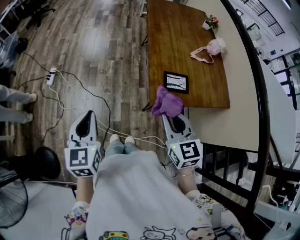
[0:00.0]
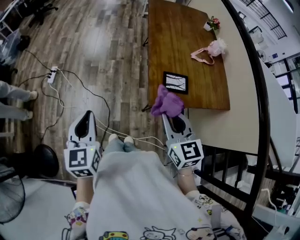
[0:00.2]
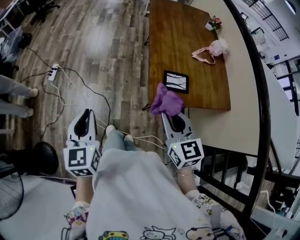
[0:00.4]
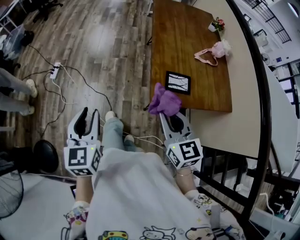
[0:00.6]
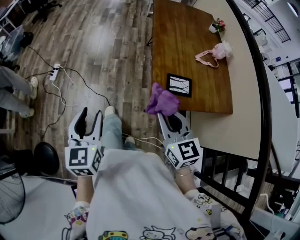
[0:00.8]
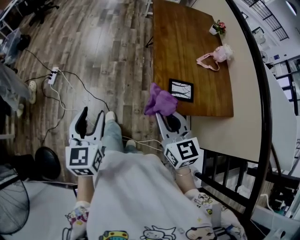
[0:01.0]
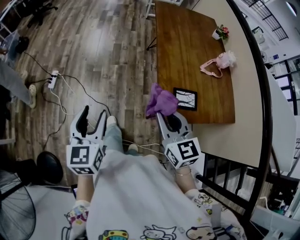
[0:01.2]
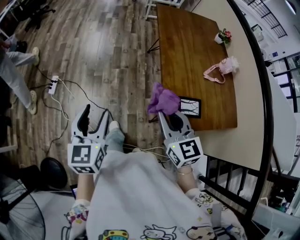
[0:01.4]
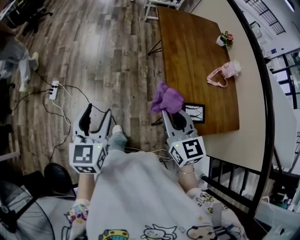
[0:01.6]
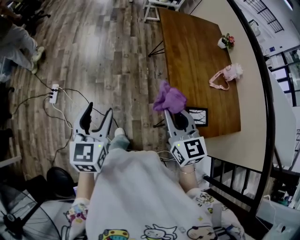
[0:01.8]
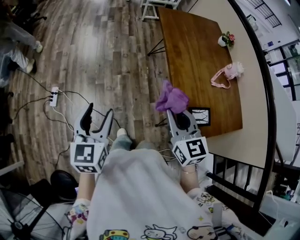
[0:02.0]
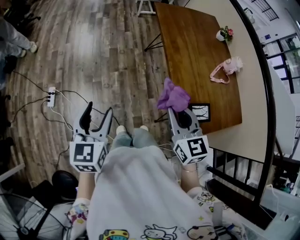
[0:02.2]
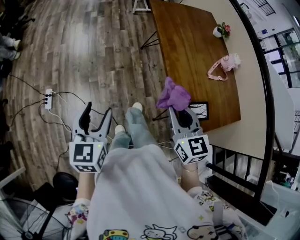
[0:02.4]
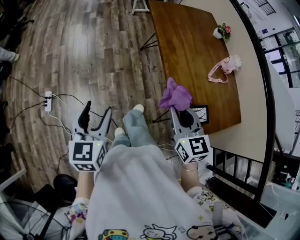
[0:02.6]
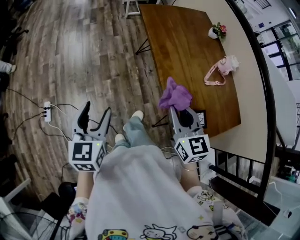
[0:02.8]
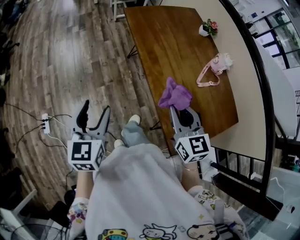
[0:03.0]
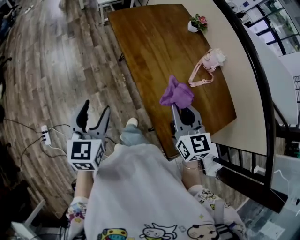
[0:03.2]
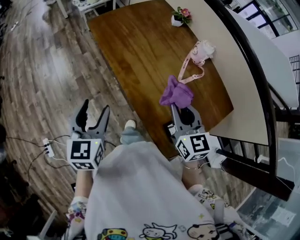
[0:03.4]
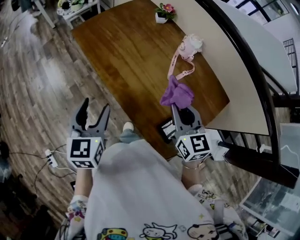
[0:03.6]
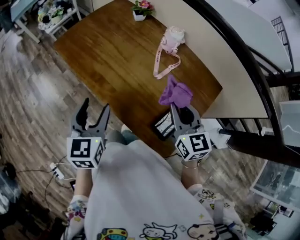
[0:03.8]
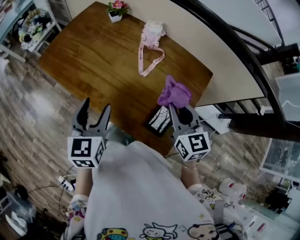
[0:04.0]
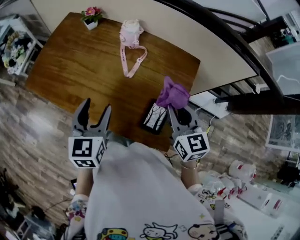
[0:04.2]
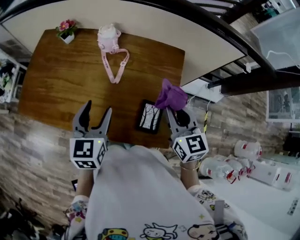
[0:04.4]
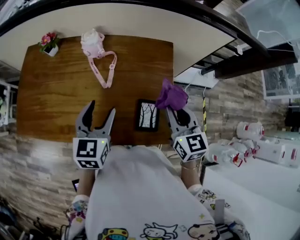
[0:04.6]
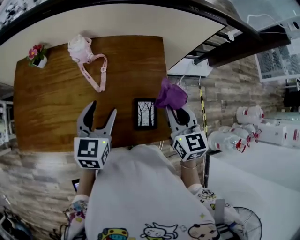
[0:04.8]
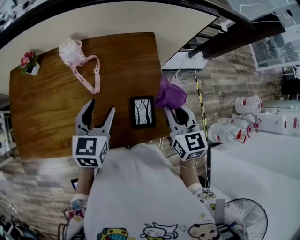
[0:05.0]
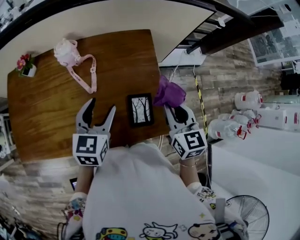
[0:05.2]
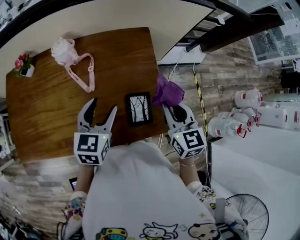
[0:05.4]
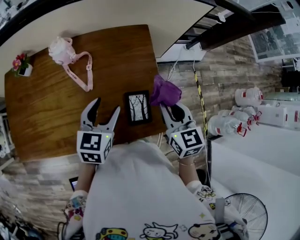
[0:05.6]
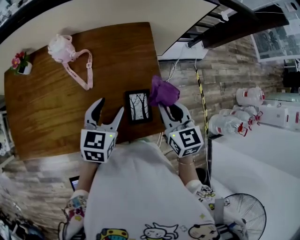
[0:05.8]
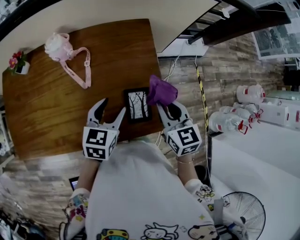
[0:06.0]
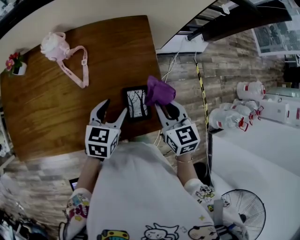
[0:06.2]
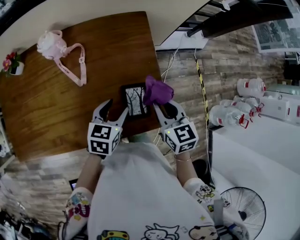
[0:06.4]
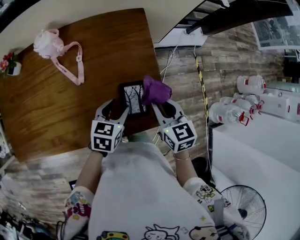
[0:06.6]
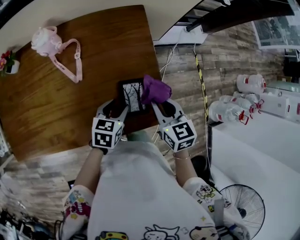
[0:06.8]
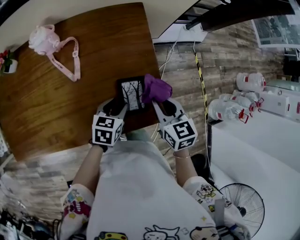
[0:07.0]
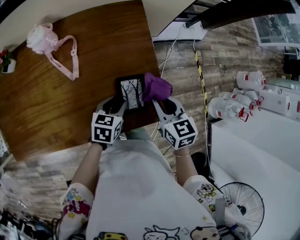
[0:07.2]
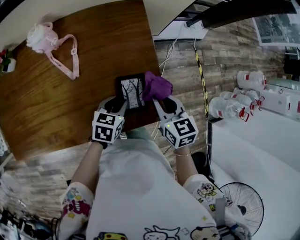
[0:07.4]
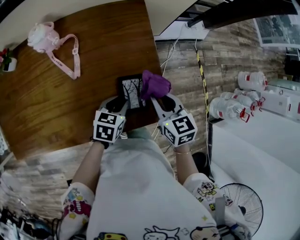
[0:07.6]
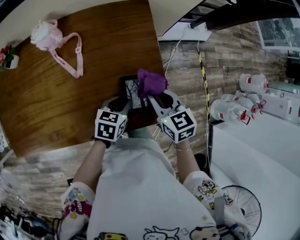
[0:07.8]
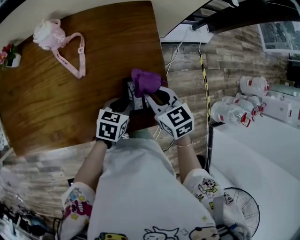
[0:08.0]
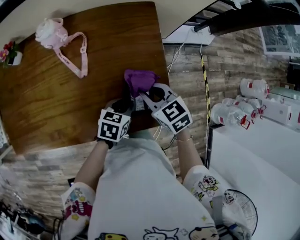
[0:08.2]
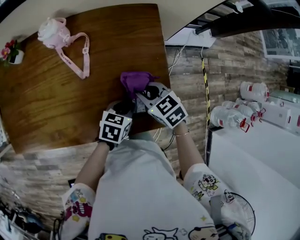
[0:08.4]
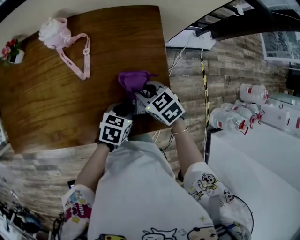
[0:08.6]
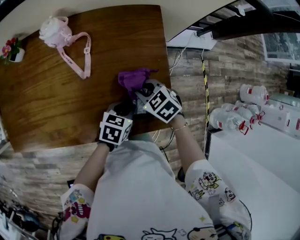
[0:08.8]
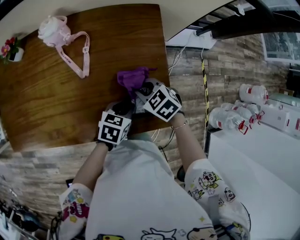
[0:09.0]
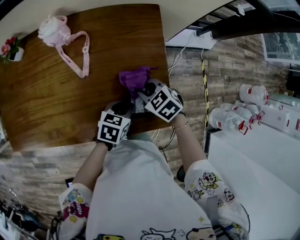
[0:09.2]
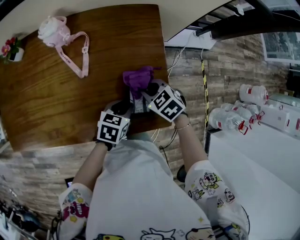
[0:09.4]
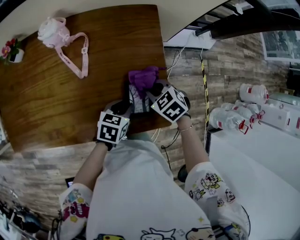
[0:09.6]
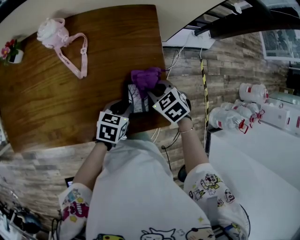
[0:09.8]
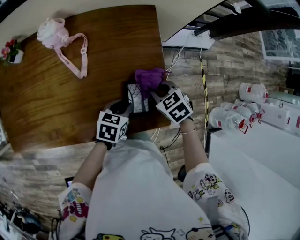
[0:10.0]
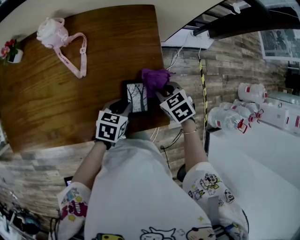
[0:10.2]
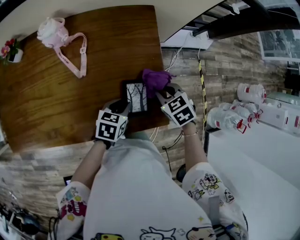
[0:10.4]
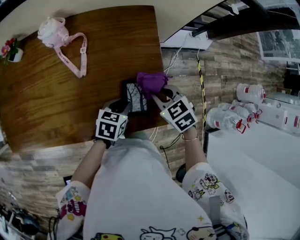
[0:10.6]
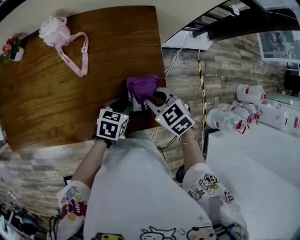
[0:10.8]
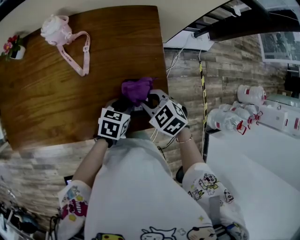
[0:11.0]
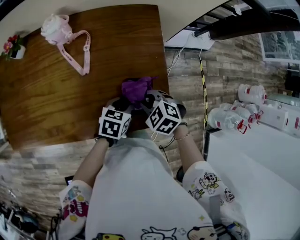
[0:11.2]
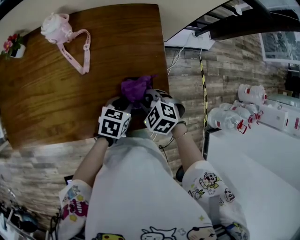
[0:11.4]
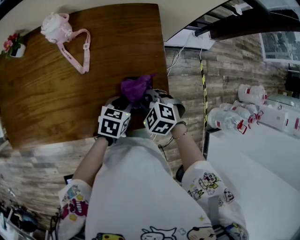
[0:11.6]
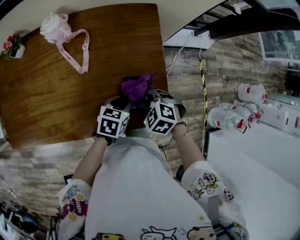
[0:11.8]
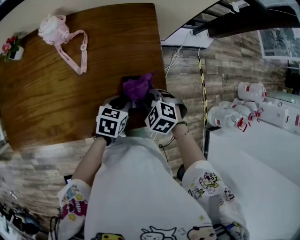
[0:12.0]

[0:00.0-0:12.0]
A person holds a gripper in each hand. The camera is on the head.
0:00.0 to 0:01.6: Both grippers travel together forward, roughly 20 cm. The left gripper opens its fingers.
0:01.6 to 0:03.0: The right gripper is displaced forward and to the right by some 15 cm. Meanwhile the left gripper is displaced forward by approximately 20 cm.
0:03.0 to 0:04.4: The left gripper shifts by roughly 40 cm, and changes its angle by roughly 60 degrees; the right gripper shifts by about 25 cm, and swivels some 60 degrees.
0:04.4 to 0:06.0: The right gripper moves downward, roughly 5 cm, and rotates approximately 20 degrees. The left gripper ends up about 15 cm from where it was, and changes its angle by about 40 degrees.
0:06.0 to 0:07.6: The right gripper goes about 5 cm downward. The left gripper goes roughly 15 cm downward and to the right, and closes up.
0:07.6 to 0:09.0: The right gripper heads to the left and downward, covering about 10 cm, and changes its angle by some 40 degrees.
0:09.0 to 0:10.4: The right gripper shifts some 10 cm to the right.
0:10.4 to 0:12.0: The right gripper heads to the left and backward, covering approximately 10 cm, and turns by some 30 degrees.

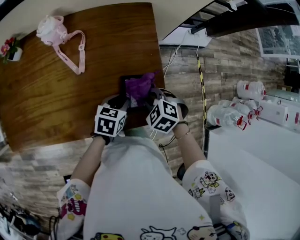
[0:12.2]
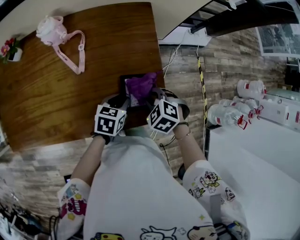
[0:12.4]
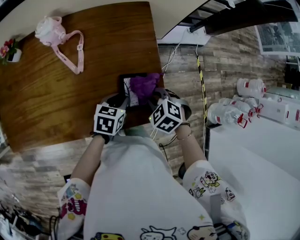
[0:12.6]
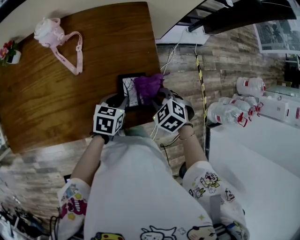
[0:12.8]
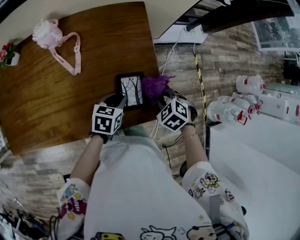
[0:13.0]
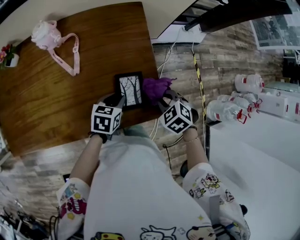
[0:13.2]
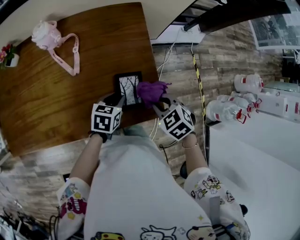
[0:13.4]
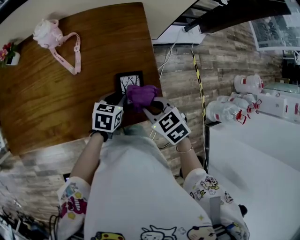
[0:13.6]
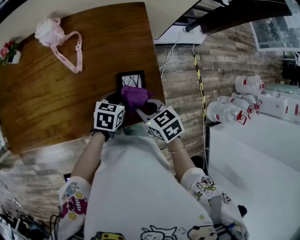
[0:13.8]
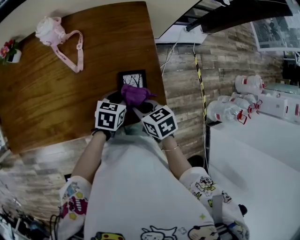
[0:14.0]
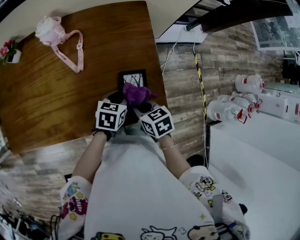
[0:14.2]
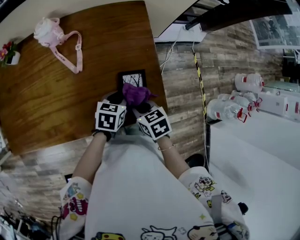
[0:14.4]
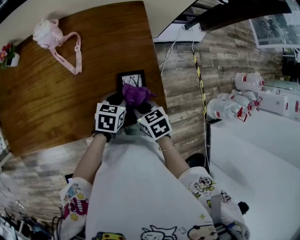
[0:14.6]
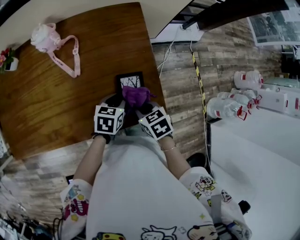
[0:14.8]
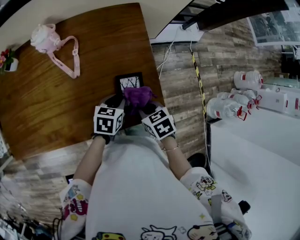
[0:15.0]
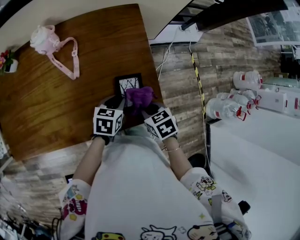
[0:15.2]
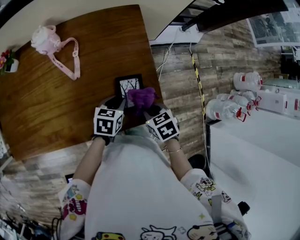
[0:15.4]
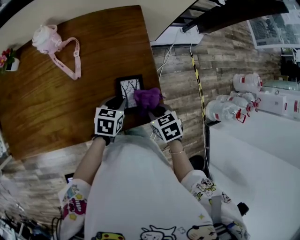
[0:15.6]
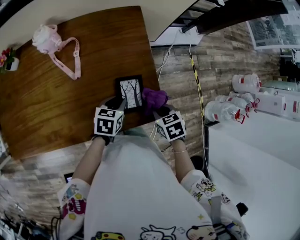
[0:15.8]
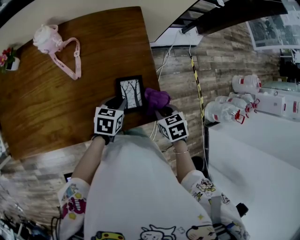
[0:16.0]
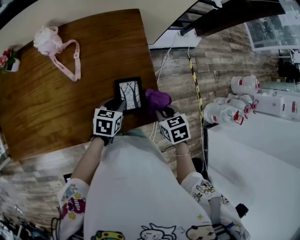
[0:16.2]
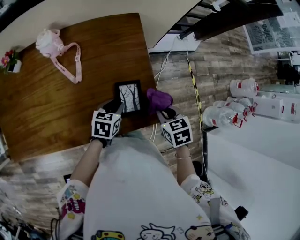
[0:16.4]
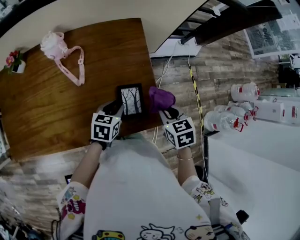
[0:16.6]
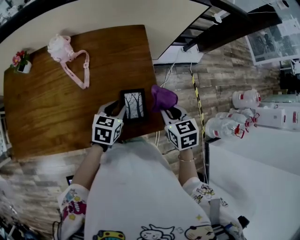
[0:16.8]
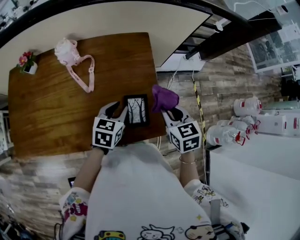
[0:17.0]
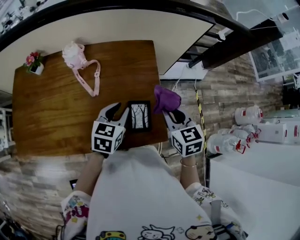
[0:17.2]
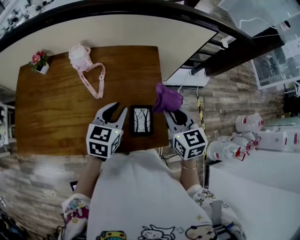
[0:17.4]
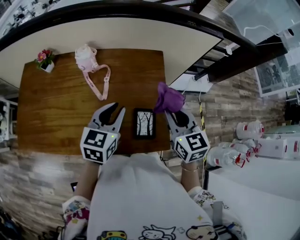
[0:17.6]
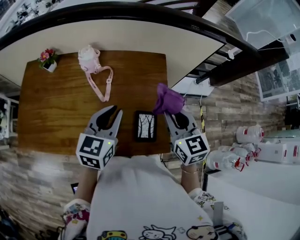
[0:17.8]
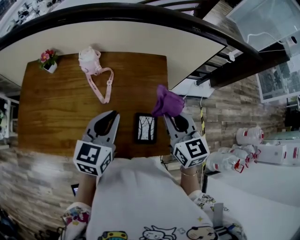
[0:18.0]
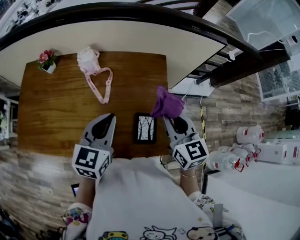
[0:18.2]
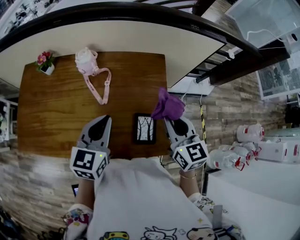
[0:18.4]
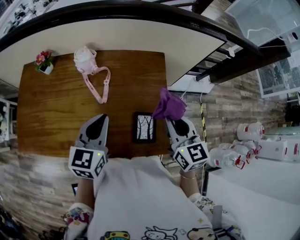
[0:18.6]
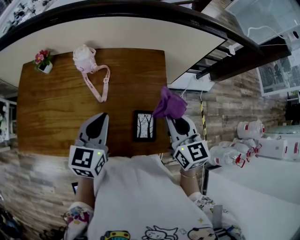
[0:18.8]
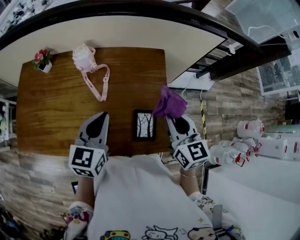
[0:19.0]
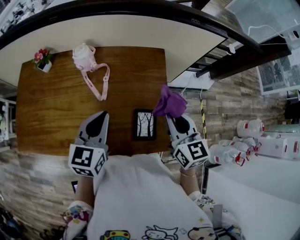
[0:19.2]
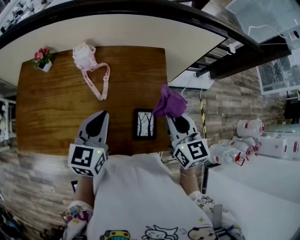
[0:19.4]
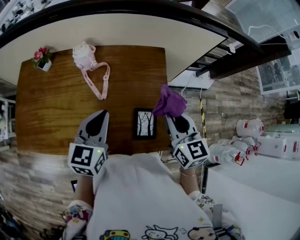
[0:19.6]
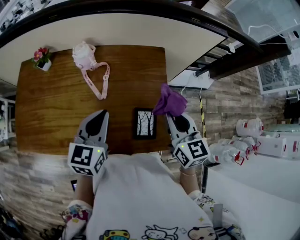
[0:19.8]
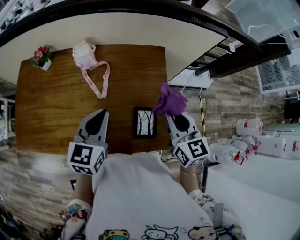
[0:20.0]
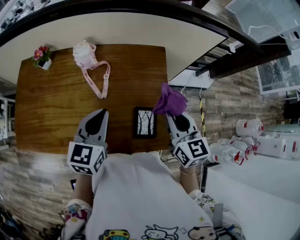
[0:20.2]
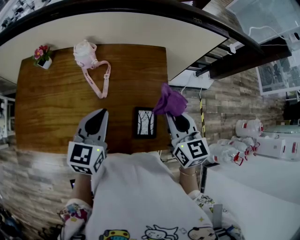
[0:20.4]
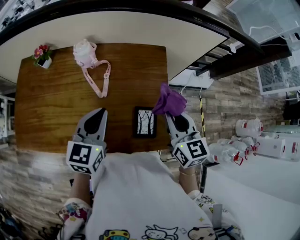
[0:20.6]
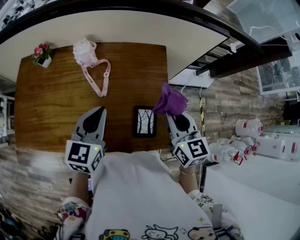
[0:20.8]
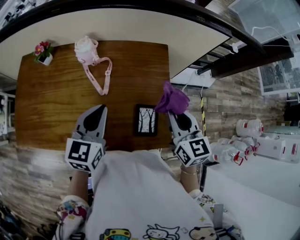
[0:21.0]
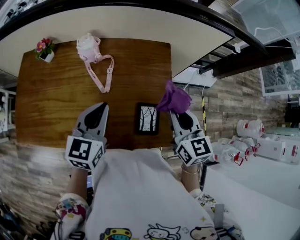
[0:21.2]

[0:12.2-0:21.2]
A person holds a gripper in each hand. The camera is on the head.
0:12.2 to 0:13.8: The right gripper heads upward, covering approximately 5 cm, travels to the right and back again, roughly 10 cm each way, and changes its angle by approximately 40 degrees.
0:13.8 to 0:15.2: The right gripper changes place by roughly 5 cm.
0:15.2 to 0:16.6: The right gripper moves upward and to the right, roughly 10 cm.
0:16.6 to 0:18.2: The left gripper goes some 25 cm upward and to the left, rotates roughly 30 degrees, and closes its fingers, while the right gripper moves upward, to the left and forward, approximately 20 cm, and tips its fingers upward by approximately 30 degrees.
0:18.2 to 0:19.8: The grippers stay close to where they were, moving slightly.
0:19.8 to 0:21.2: Both grippers stay put.

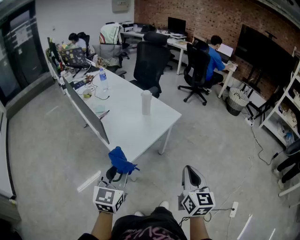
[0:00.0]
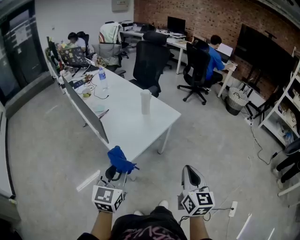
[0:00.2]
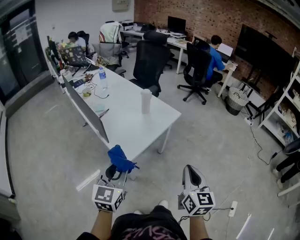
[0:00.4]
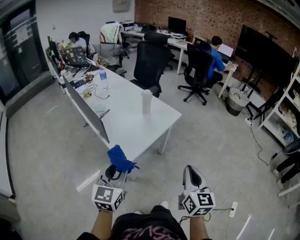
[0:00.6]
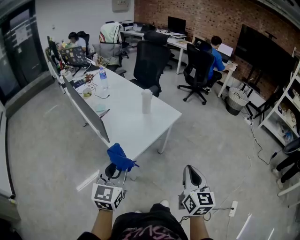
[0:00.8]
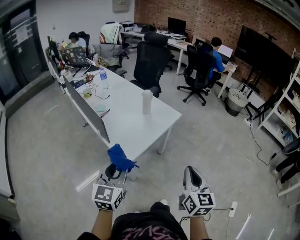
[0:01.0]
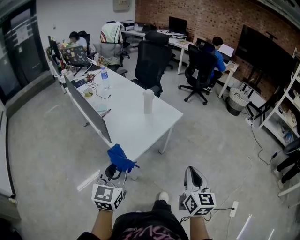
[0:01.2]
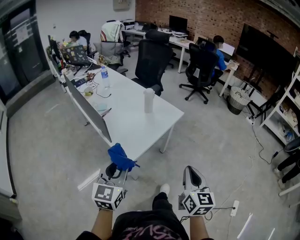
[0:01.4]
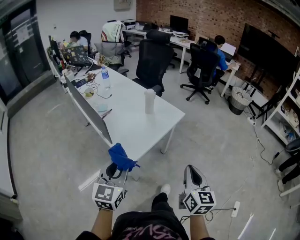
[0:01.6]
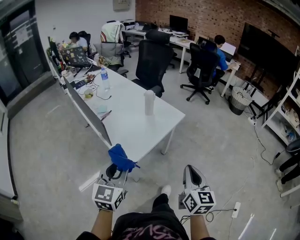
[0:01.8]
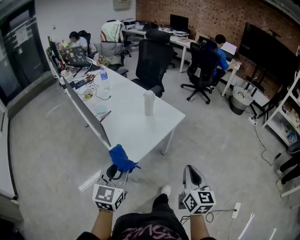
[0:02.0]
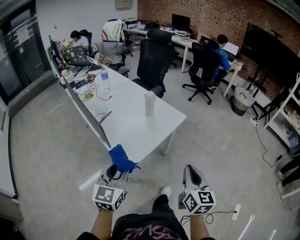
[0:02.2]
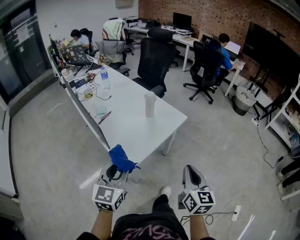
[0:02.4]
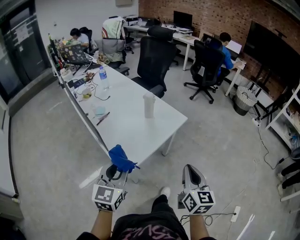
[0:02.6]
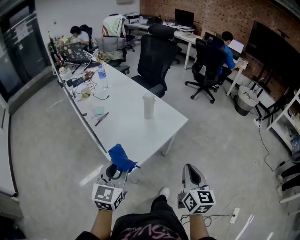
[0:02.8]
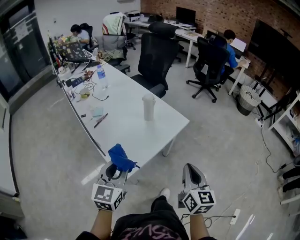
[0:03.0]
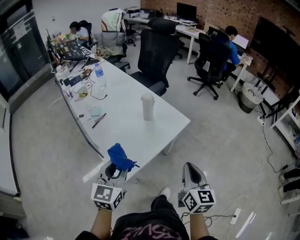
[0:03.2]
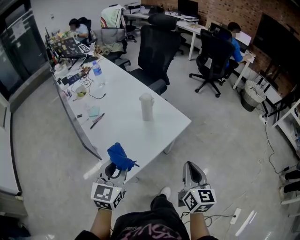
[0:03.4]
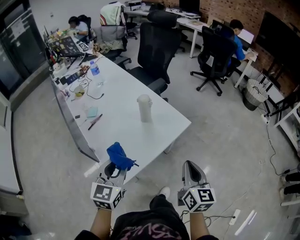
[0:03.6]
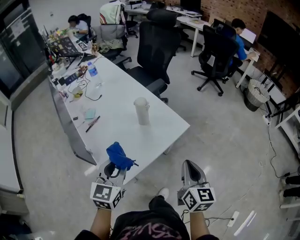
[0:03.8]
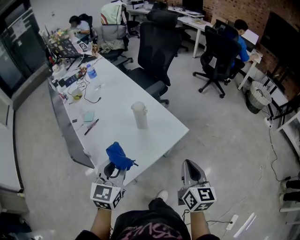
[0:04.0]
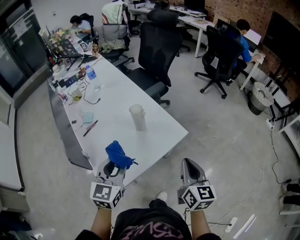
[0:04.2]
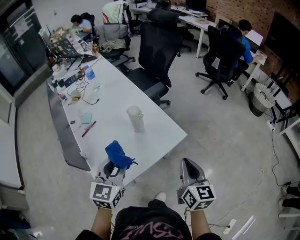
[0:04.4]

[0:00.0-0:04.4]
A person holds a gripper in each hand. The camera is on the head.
0:00.0 to 0:01.4: The grippers make only small movements.
0:01.4 to 0:03.0: The grippers both shift forward by approximately 15 cm.
0:03.0 to 0:04.4: The right gripper travels forward by approximately 20 cm, while the left gripper is displaced forward and to the right by roughly 20 cm.
